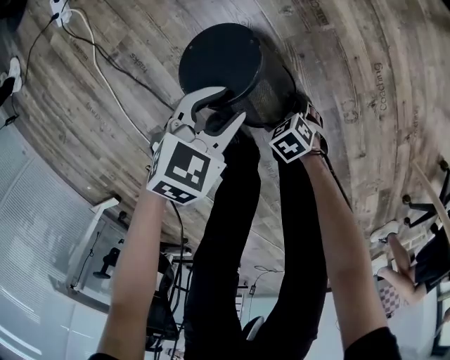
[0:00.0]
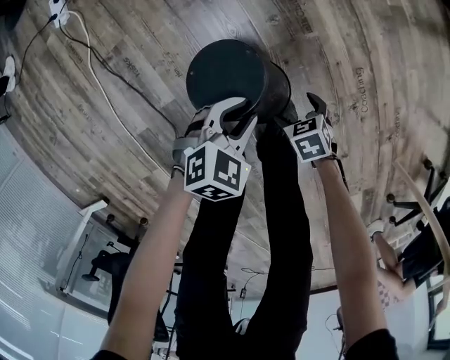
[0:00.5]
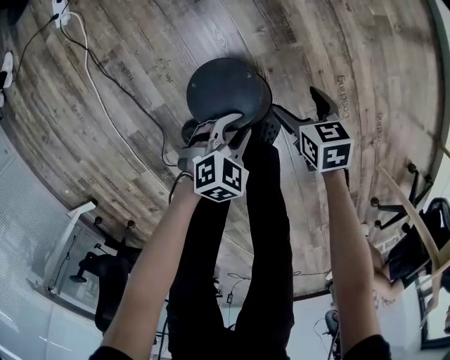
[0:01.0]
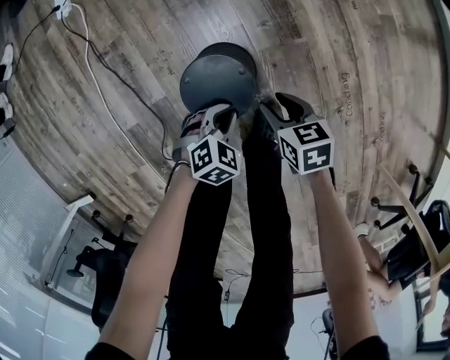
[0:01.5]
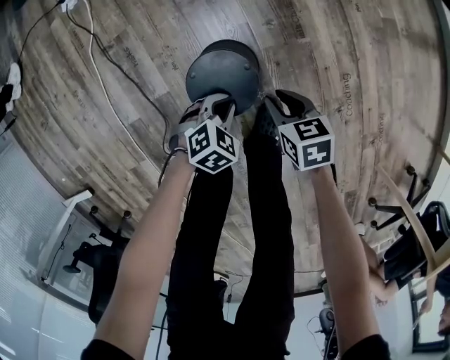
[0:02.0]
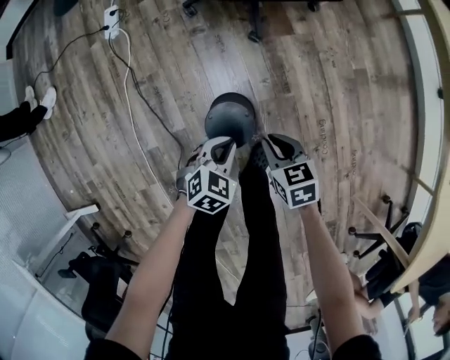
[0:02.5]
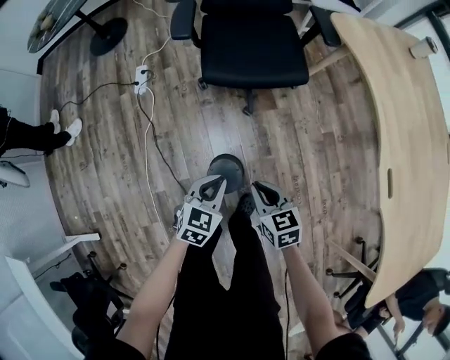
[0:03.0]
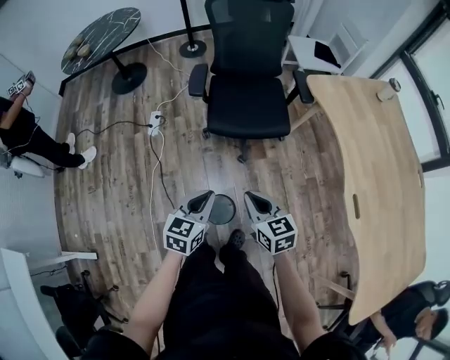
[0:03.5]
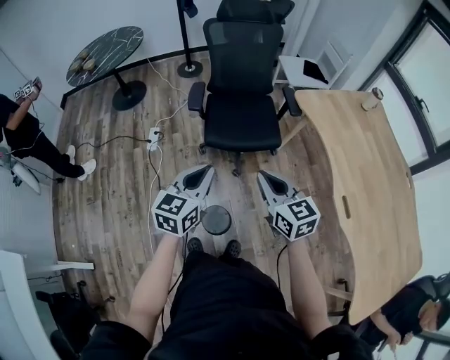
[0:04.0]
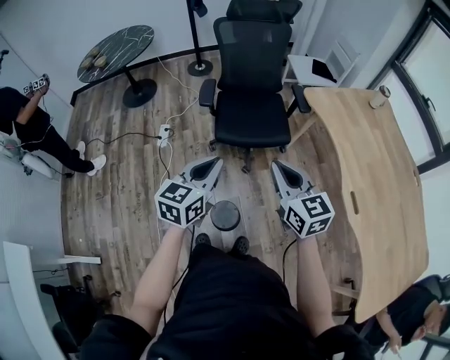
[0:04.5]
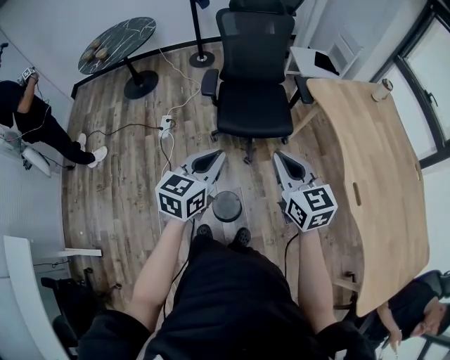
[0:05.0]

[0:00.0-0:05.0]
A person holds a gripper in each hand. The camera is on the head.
0:00.0 to 0:02.5: The left gripper heads upward, covering approximately 15 cm, and closes up; the right gripper shifts approximately 35 cm upward, turns by roughly 30 degrees, and closes up.
0:02.5 to 0:05.0: Both grippers travel together upward, roughly 60 cm. The left gripper points its fingers approximately 40 degrees further upward. Meanwhile the right gripper points its fingers roughly 40 degrees further upward.

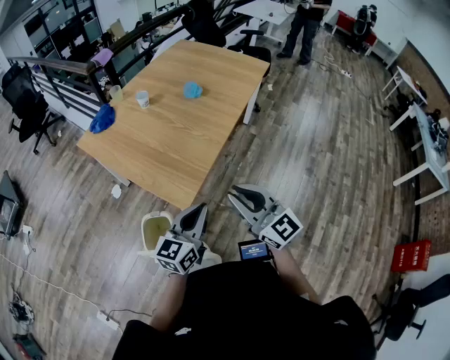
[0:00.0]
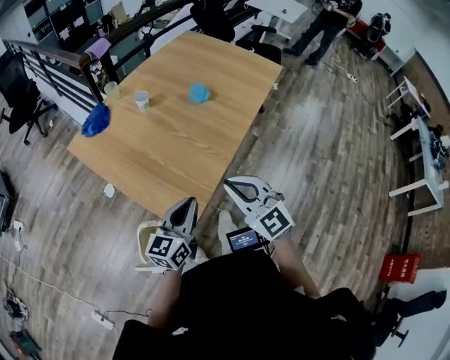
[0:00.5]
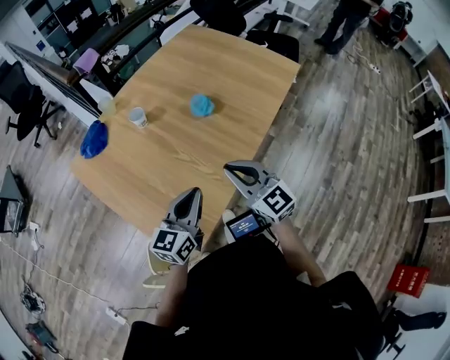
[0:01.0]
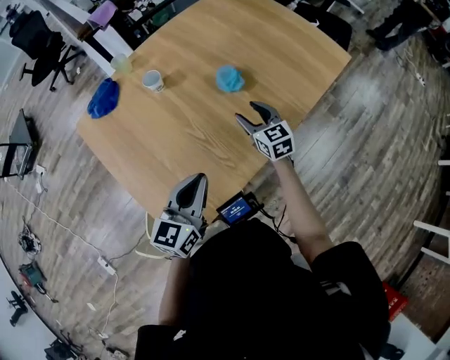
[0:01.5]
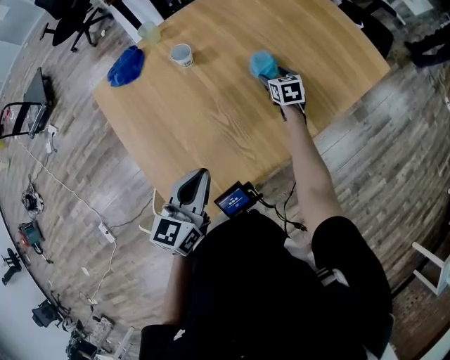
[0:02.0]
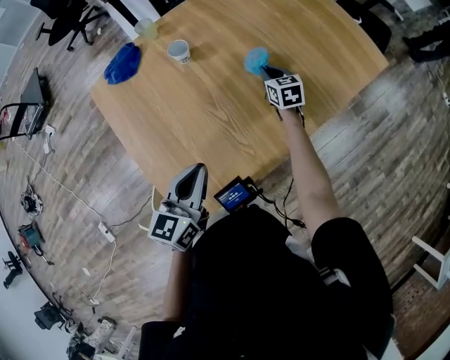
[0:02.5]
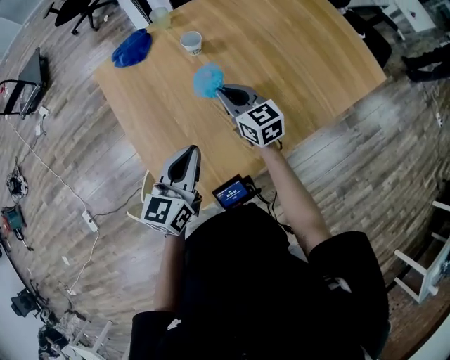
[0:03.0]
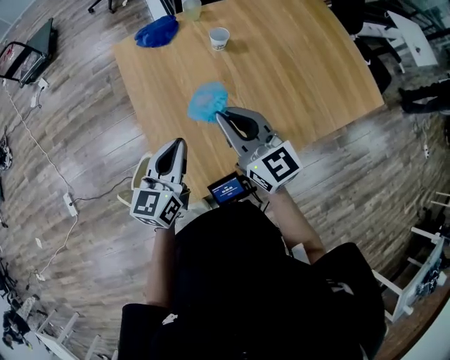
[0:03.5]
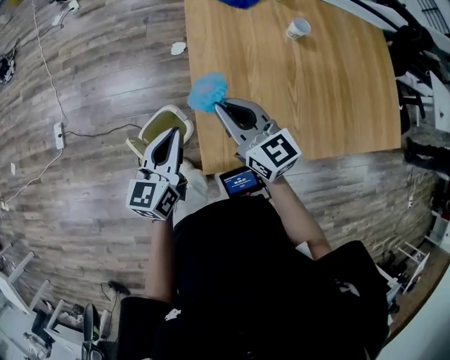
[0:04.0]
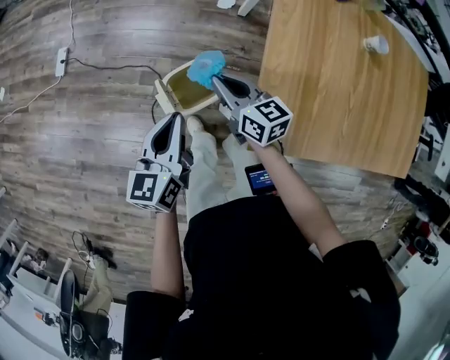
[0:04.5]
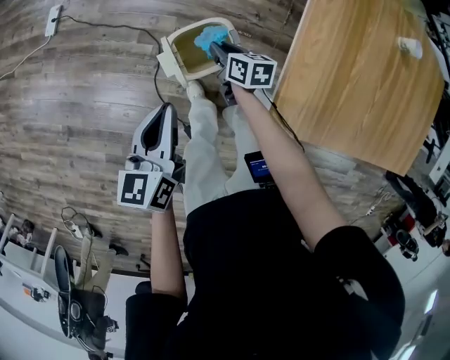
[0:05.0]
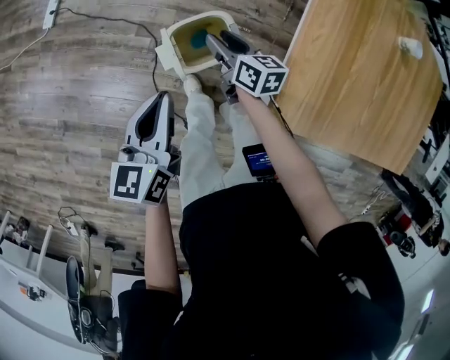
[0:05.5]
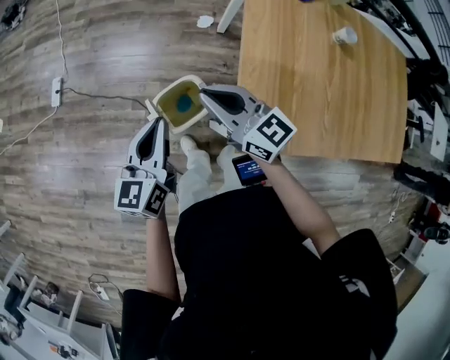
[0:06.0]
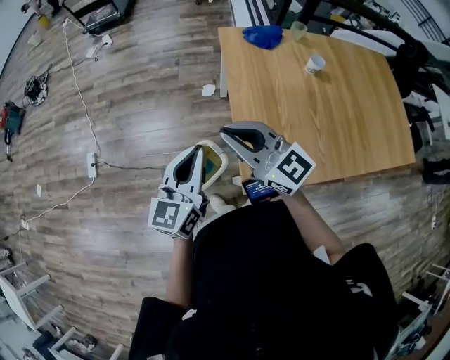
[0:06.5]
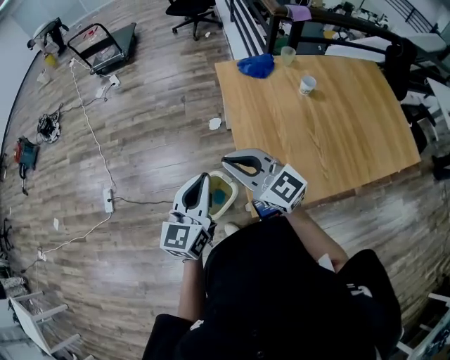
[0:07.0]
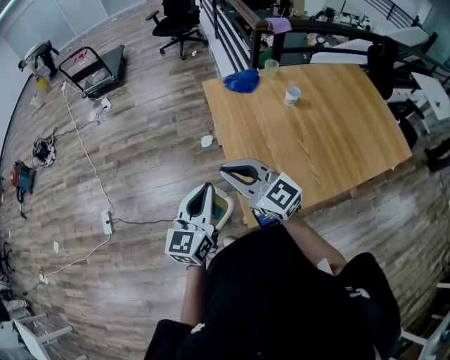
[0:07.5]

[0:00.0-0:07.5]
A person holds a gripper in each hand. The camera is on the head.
0:00.0 to 0:02.0: The left gripper moves forward, about 35 cm, and rotates roughly 30 degrees. The right gripper travels forward and downward by some 80 cm, points its fingers some 40 degrees further downward, and opens its fingers.
0:02.0 to 0:04.0: The right gripper shifts by about 60 cm, angles its fingers upward, by about 30 degrees, and closes up; the left gripper moves some 30 cm, and swivels approximately 40 degrees.
0:04.0 to 0:05.5: The right gripper goes roughly 40 cm downward and to the left, turns by about 40 degrees, and opens its fingers. The left gripper is displaced to the left and downward by roughly 30 cm, and rotates about 30 degrees.
0:05.5 to 0:07.5: The right gripper heads upward, covering some 40 cm, twists some 40 degrees counterclockwise, seen from behind, and closes its fingers. Meanwhile the left gripper is displaced upward and to the right by some 30 cm, and swivels roughly 40 degrees.

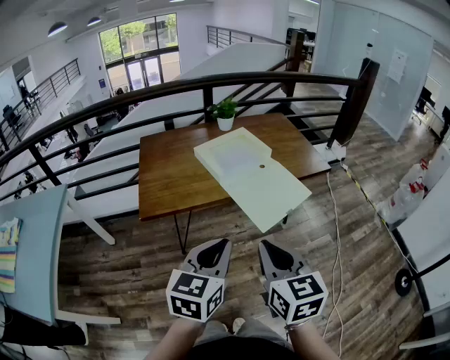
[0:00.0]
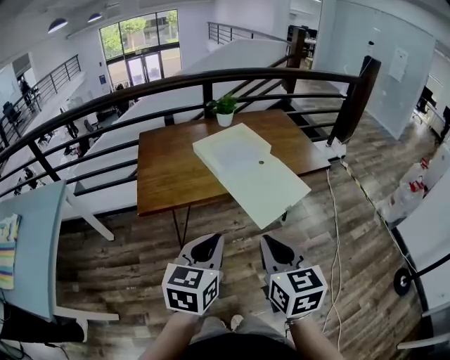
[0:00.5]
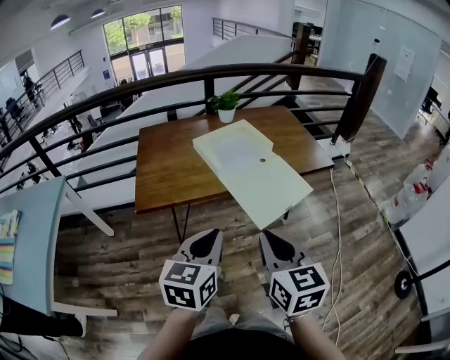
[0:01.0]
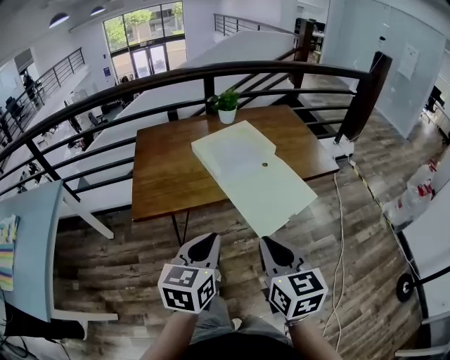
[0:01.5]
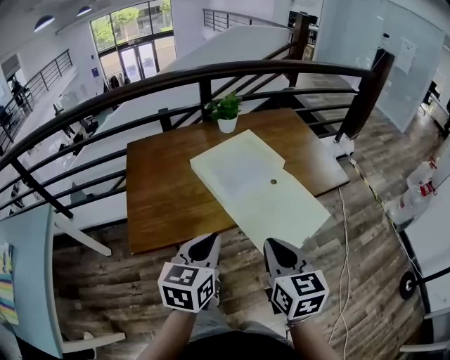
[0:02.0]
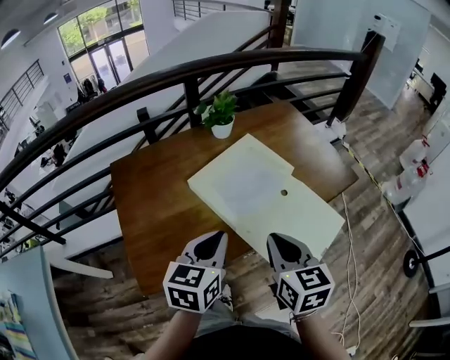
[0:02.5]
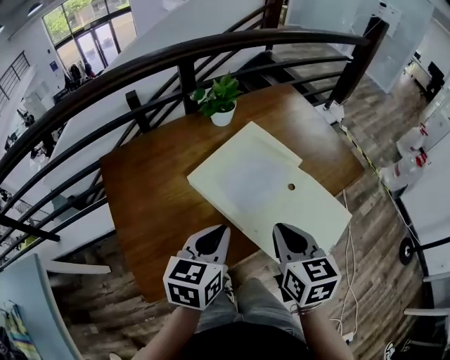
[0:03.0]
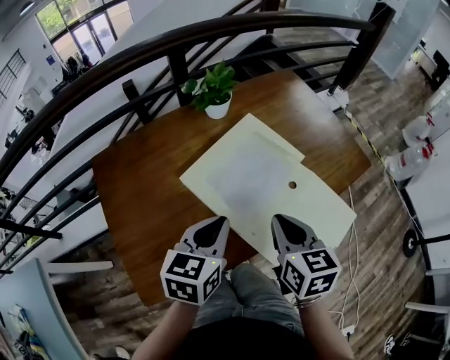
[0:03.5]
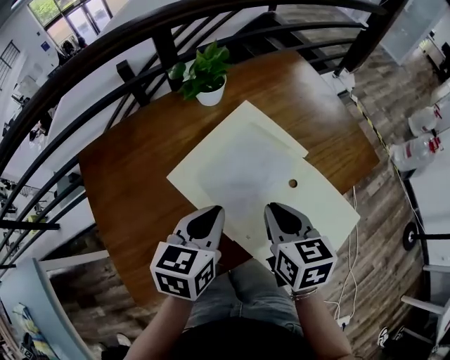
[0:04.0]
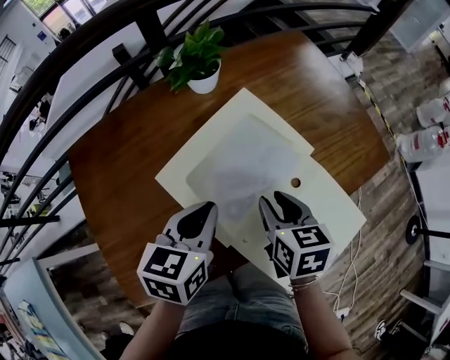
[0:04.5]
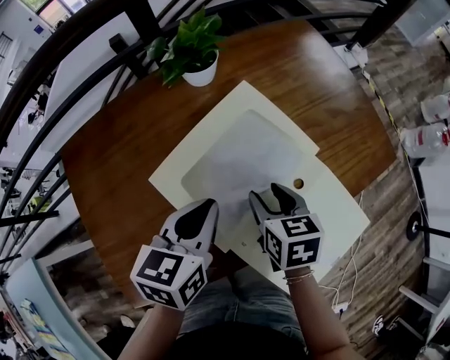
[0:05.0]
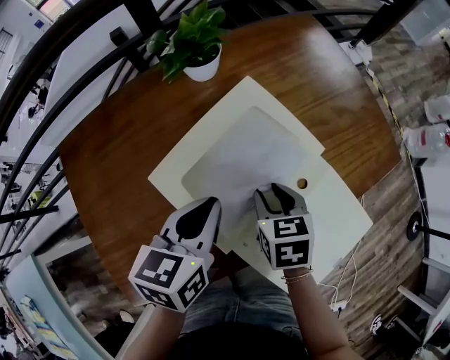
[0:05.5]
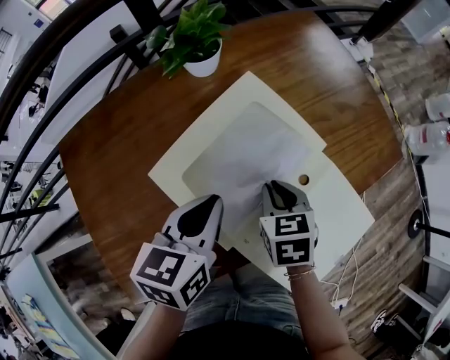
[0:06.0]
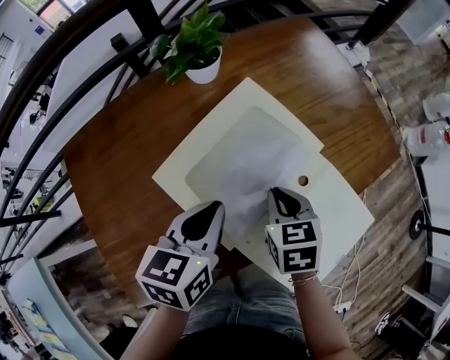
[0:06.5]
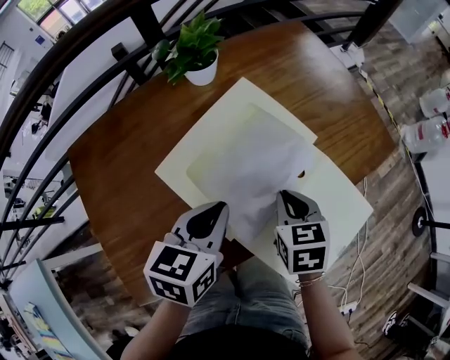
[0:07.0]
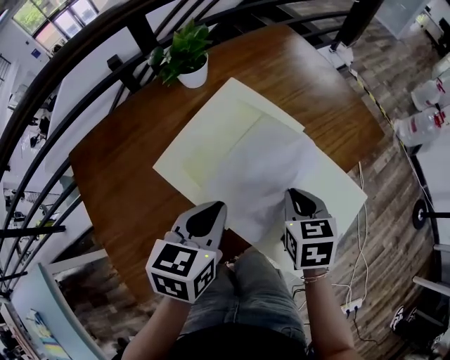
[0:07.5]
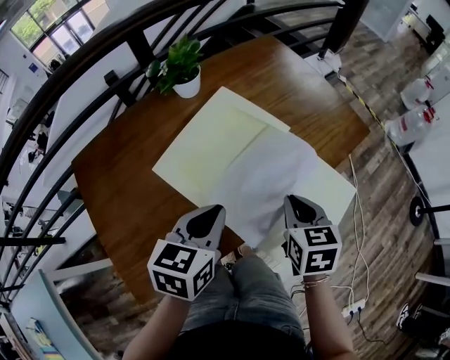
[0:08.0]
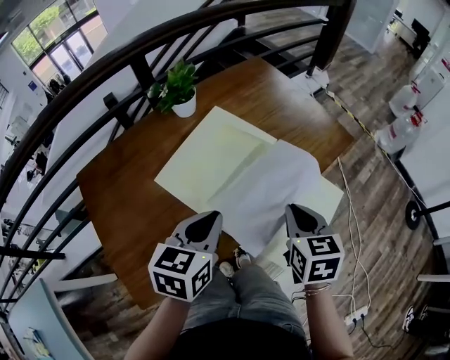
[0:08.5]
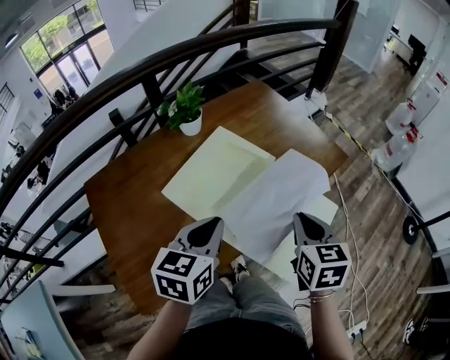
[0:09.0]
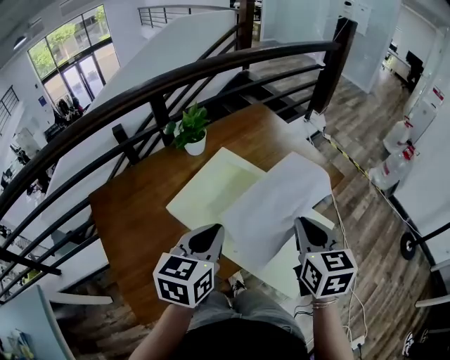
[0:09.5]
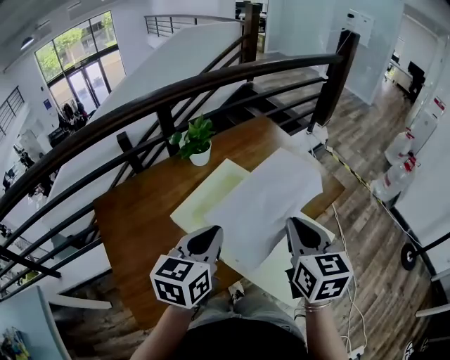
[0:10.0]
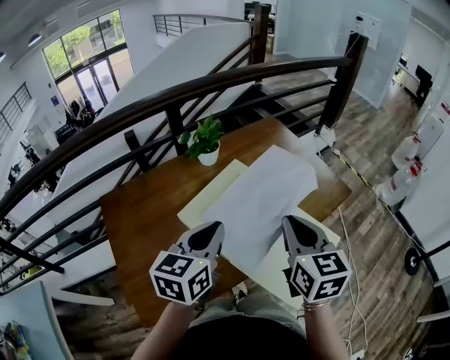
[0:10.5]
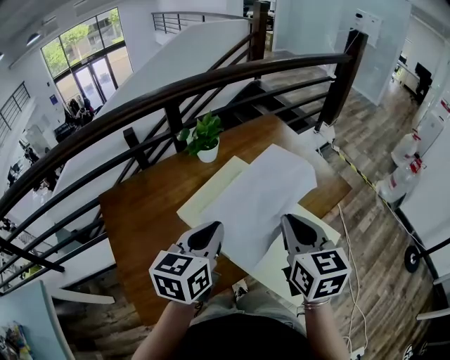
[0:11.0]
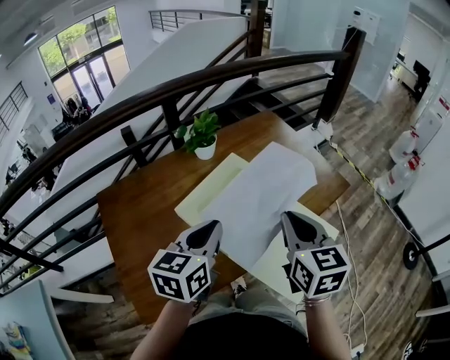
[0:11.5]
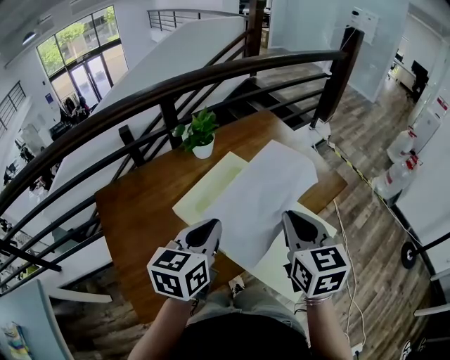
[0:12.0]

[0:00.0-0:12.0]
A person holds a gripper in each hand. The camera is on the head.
0:00.0 to 0:02.0: The two grippers go about 20 cm forward.
0:02.0 to 0:04.0: The grippers both shift forward by approximately 25 cm.
0:04.0 to 0:06.0: The left gripper ends up roughly 5 cm from where it was. Meanwhile the right gripper is displaced downward and forward by about 10 cm, turns by about 20 degrees, and opens and closes again.
0:06.0 to 0:08.0: The left gripper heads backward, covering roughly 10 cm. Meanwhile the right gripper is displaced to the right, backward and upward by roughly 15 cm.
0:08.0 to 0:10.0: The right gripper travels upward by approximately 15 cm, and rotates about 20 degrees. Meanwhile the left gripper shifts about 10 cm upward.
0:10.0 to 0:12.0: The grippers stay close to where they were, moving slightly.

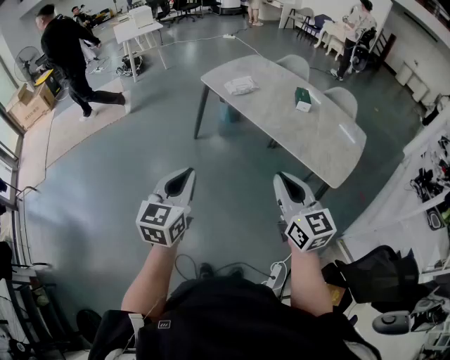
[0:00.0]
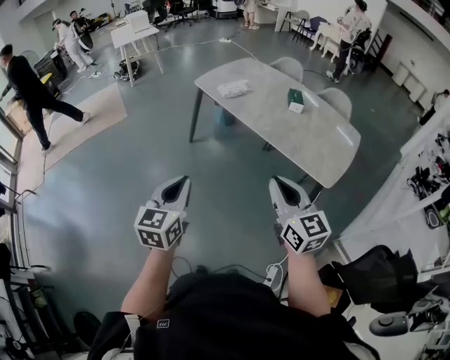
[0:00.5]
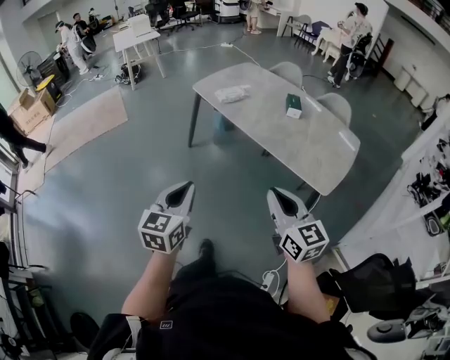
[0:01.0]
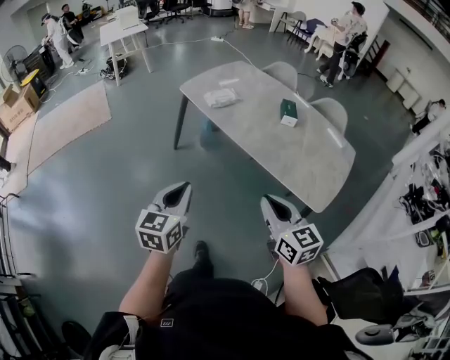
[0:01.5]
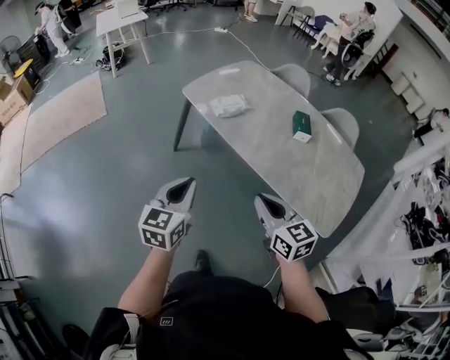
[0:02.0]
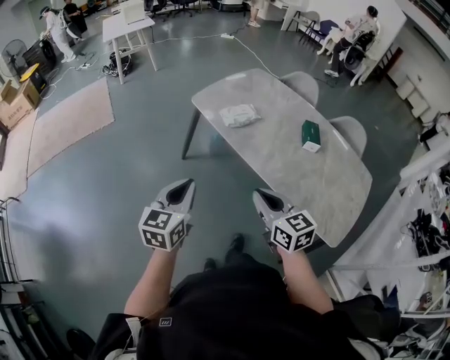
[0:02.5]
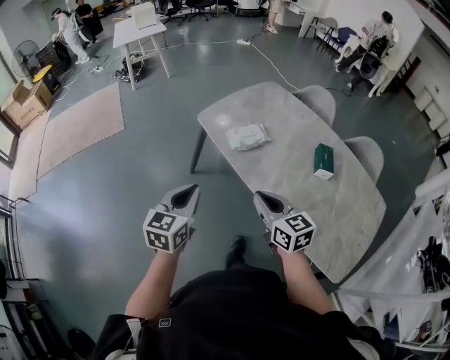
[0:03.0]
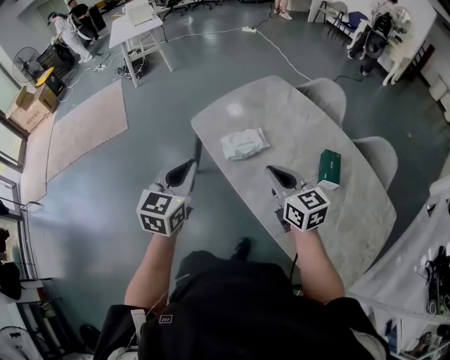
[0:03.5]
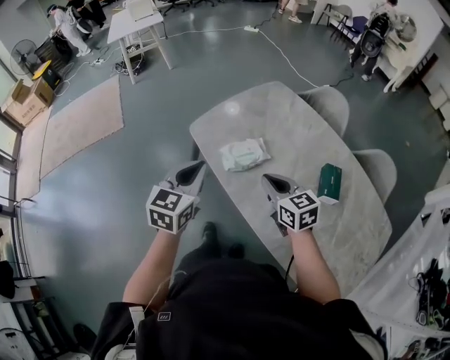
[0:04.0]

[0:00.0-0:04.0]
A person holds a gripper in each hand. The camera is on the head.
0:00.0 to 0:02.0: Both grippers travel together forward, about 30 cm.
0:02.0 to 0:04.0: The two grippers go roughly 40 cm forward.
